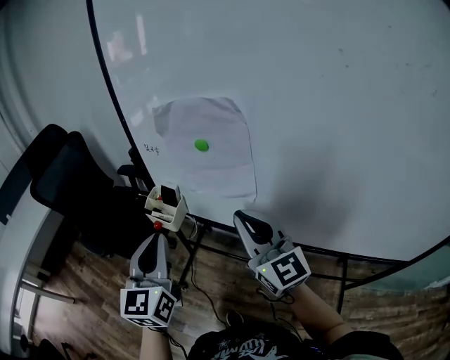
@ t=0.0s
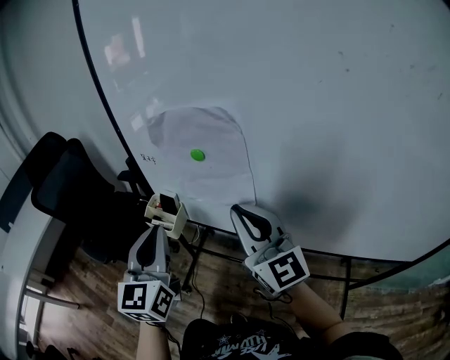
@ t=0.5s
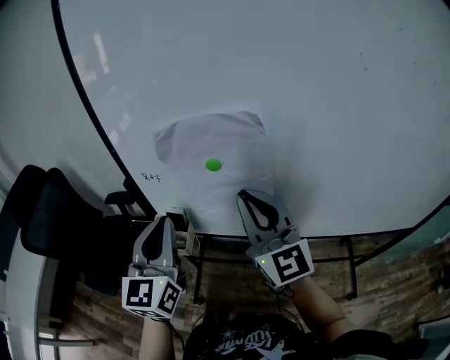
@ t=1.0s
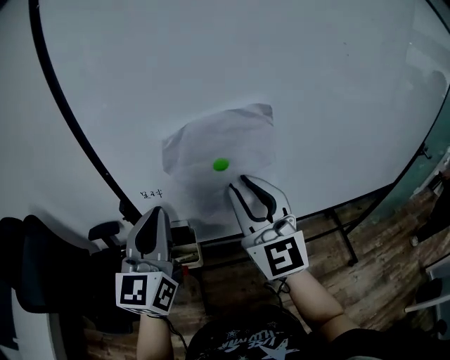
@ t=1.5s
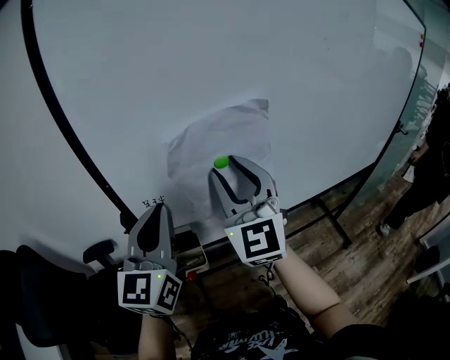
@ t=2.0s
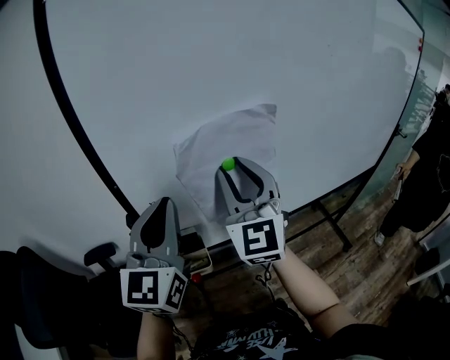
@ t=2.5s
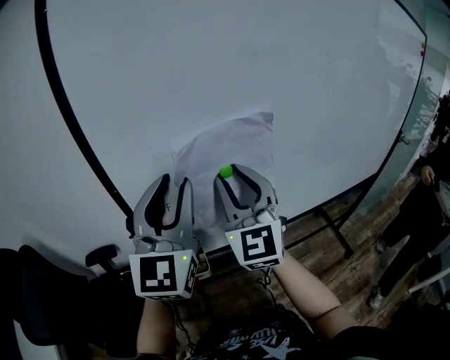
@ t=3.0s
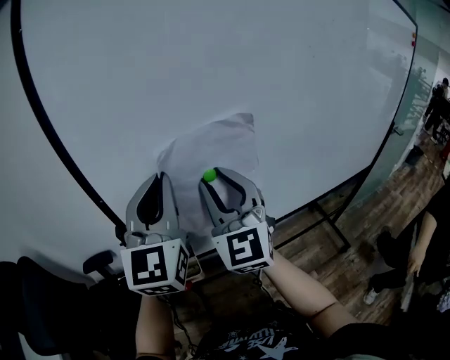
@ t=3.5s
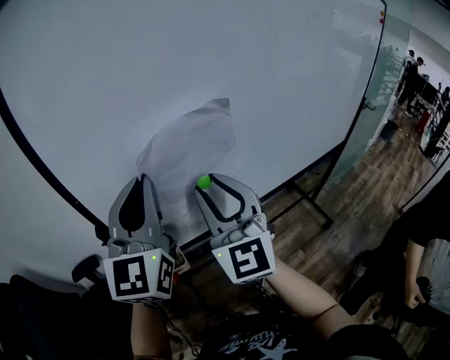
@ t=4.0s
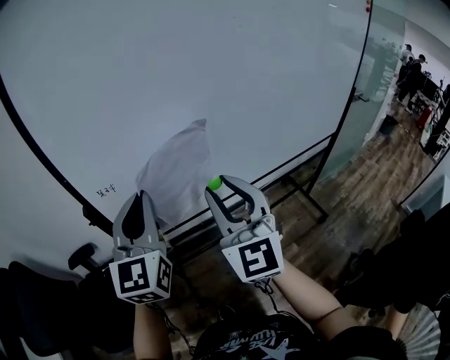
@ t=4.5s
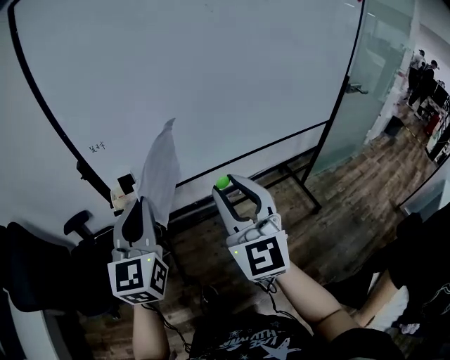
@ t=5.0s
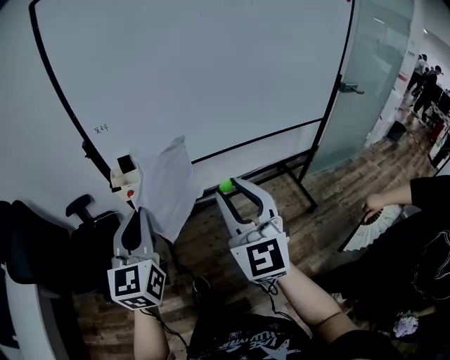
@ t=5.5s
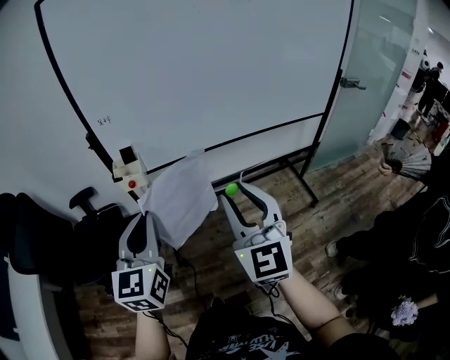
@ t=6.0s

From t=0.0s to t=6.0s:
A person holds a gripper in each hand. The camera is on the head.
From t=0.0s to t=2.0s: The left gripper moves about 20 cm, and swivels some 40 degrees. Meanwhile the right gripper moves approximately 15 cm, rotates roughly 60 degrees, and opens its fingers.
From t=2.0s to t=4.0s: The right gripper changes place by some 5 cm. The left gripper goes approximately 10 cm upward and to the right, and opens and closes again.
From t=4.0s to t=6.0s: The right gripper goes approximately 35 cm backward and to the right, while the left gripper travels backward and downward by approximately 35 cm, and changes its angle by some 20 degrees.

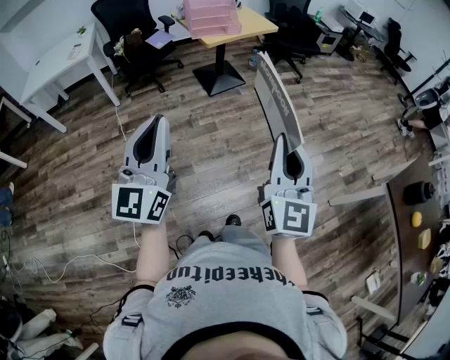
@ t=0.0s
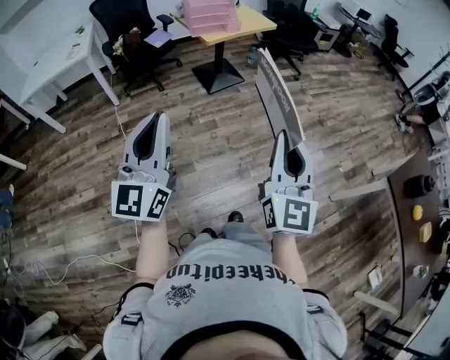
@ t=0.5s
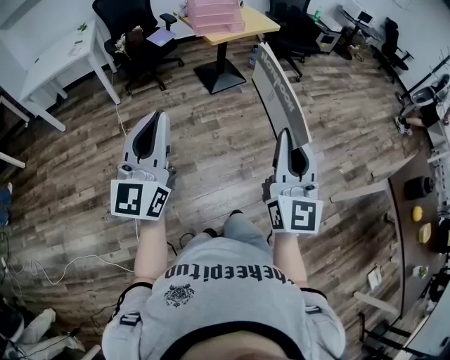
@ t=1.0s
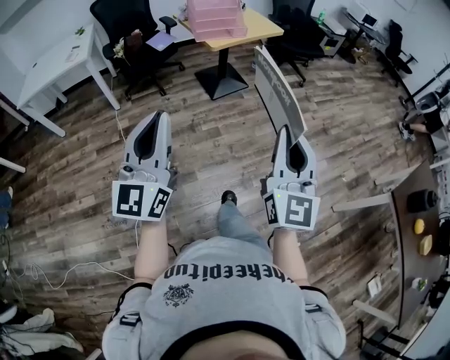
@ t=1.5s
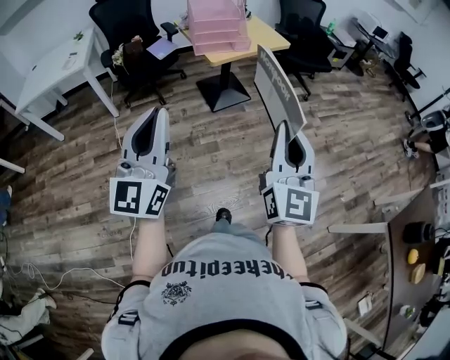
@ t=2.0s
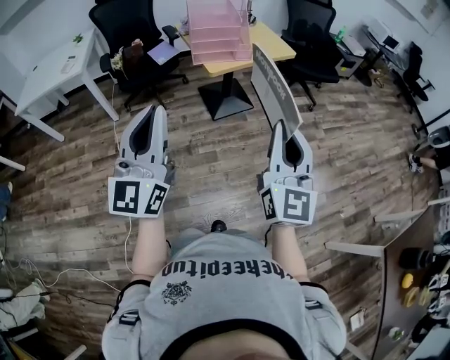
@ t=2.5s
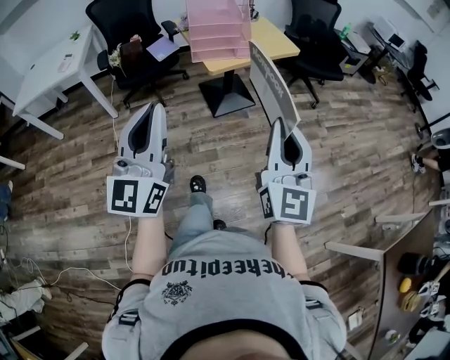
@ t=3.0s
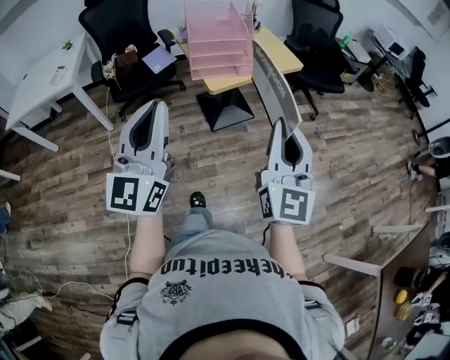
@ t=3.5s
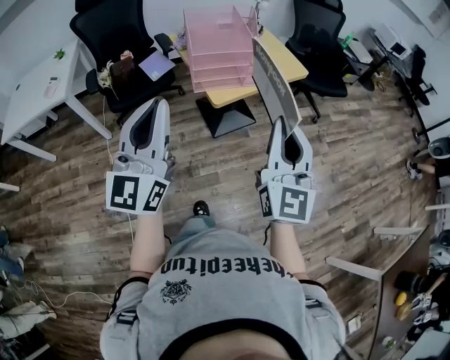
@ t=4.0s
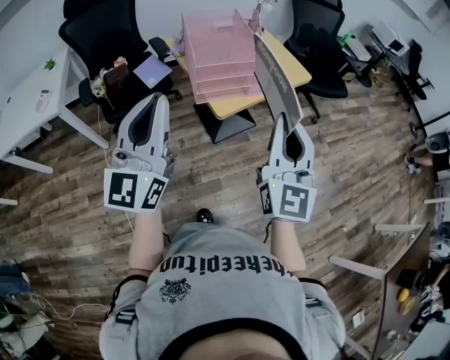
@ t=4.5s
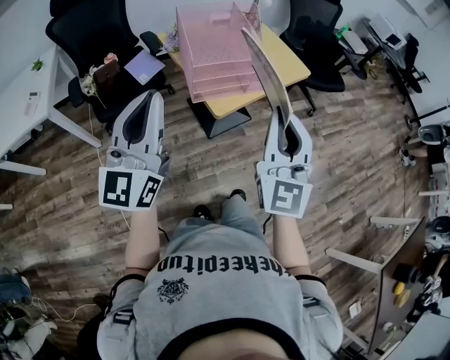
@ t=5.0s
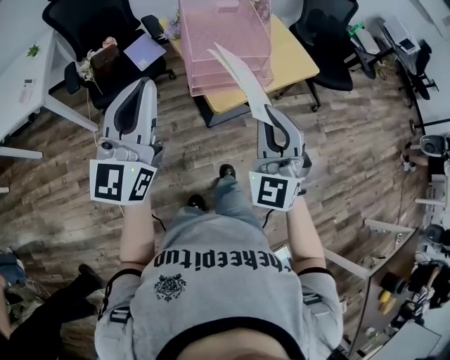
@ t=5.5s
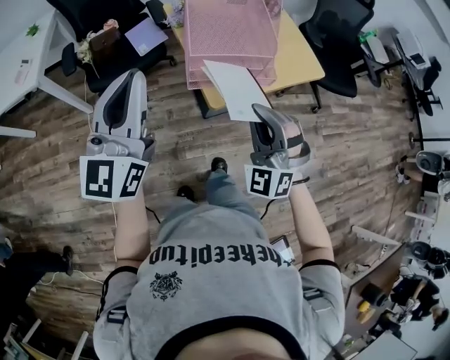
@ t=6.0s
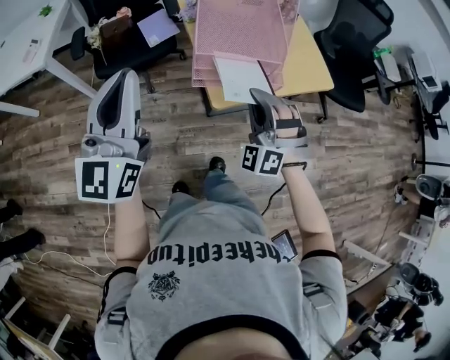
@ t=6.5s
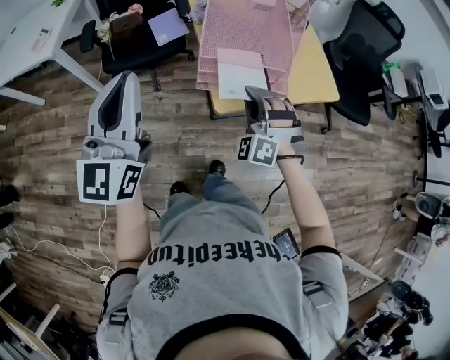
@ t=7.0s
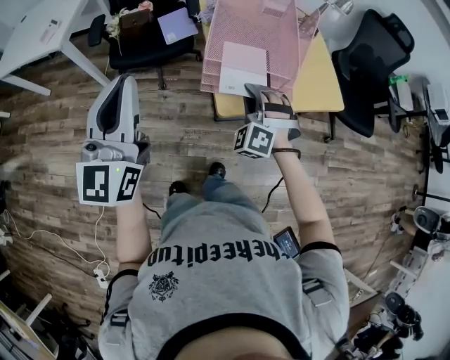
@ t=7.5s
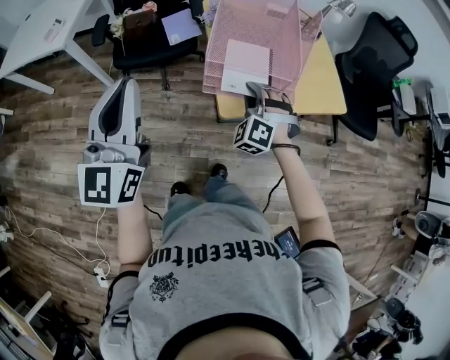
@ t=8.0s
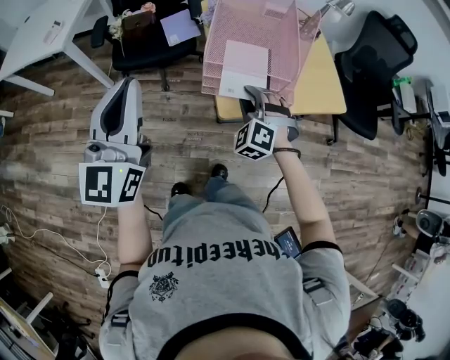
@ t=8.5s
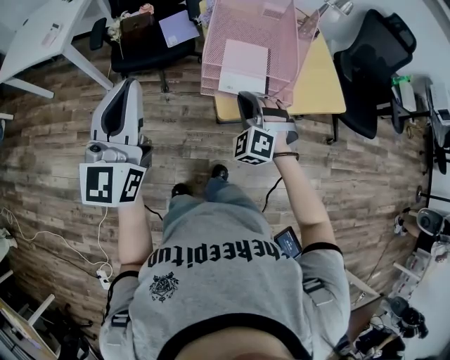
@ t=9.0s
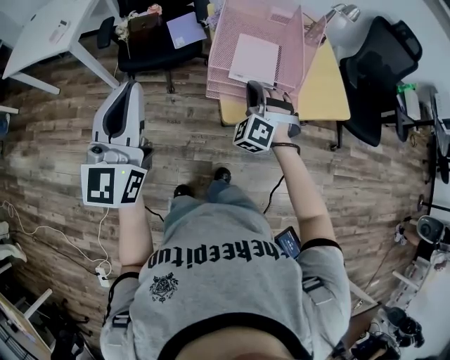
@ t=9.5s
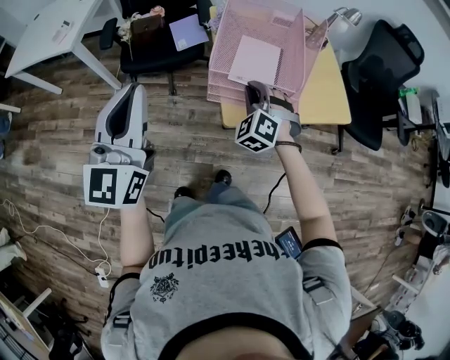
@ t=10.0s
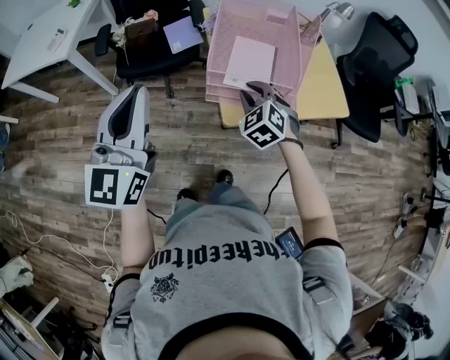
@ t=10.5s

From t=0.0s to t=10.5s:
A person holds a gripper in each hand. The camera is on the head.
From t=0.0s to t=2.0s: The grippers both shift forward by about 20 cm.
From t=2.0s to t=4.0s: The grippers both shift forward by about 35 cm.
From t=4.0s to t=6.5s: The left gripper goes some 20 cm forward; the right gripper moves forward and downward, roughly 35 cm, and rolls counterclockwise, seen from behind, by some 70 degrees.
From t=6.5s to t=8.5s: The right gripper shifts roughly 10 cm downward and forward, rotates approximately 20 degrees, and opens.
From t=8.5s to t=10.5s: The right gripper rotates some 20 degrees.

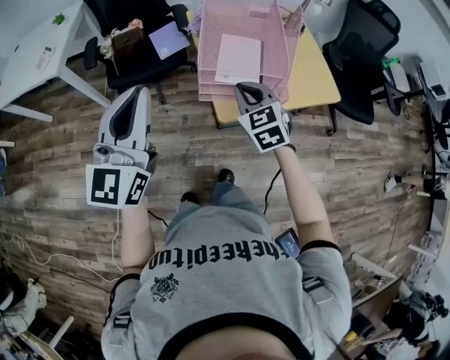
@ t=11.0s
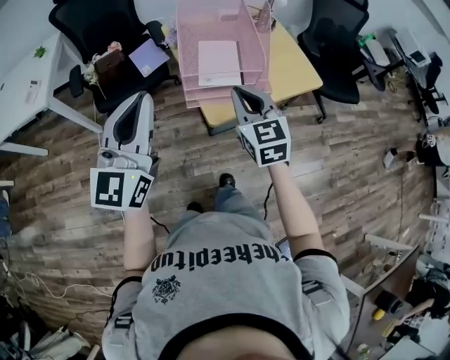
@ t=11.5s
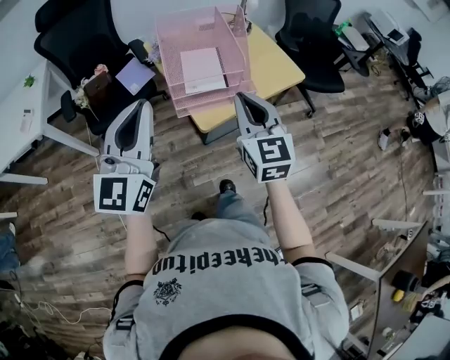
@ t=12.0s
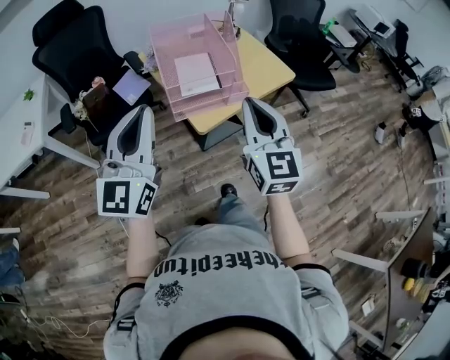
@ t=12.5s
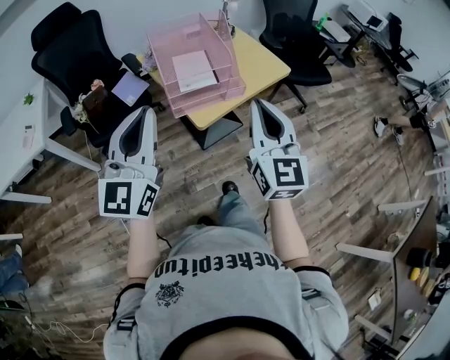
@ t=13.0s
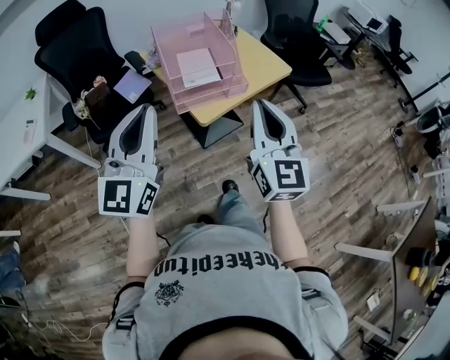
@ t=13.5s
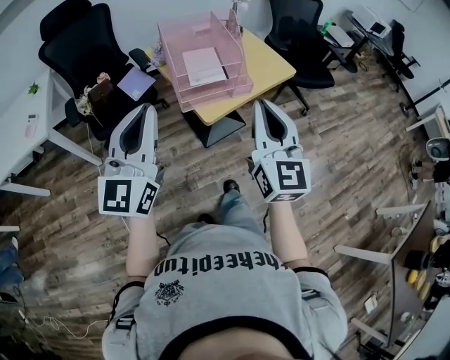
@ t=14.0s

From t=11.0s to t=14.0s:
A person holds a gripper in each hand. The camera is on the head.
From t=11.0s to t=12.5s: The right gripper heads upward, backward and to the right, covering approximately 25 cm, and points its fingers about 30 degrees further upward. The left gripper shifts by roughly 5 cm.
From t=12.5s to t=14.0s: The two grippers go about 5 cm backward.

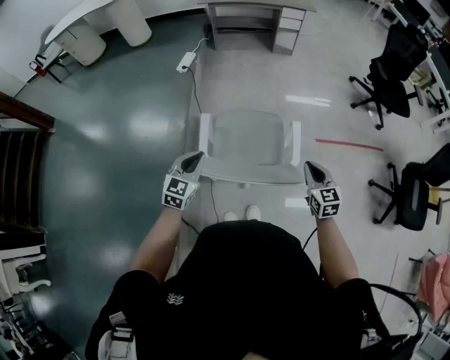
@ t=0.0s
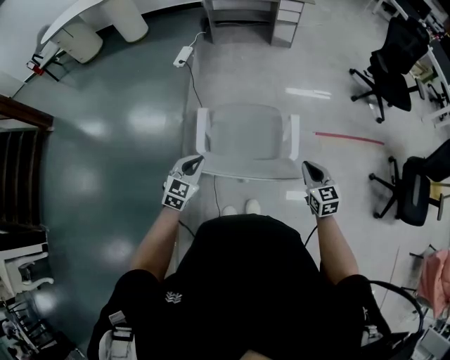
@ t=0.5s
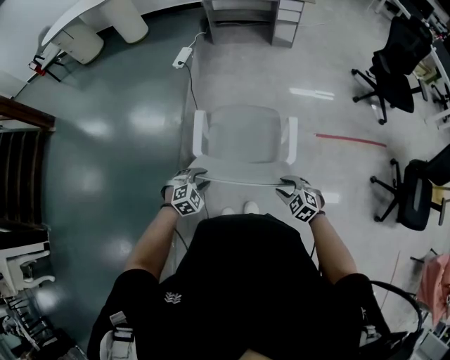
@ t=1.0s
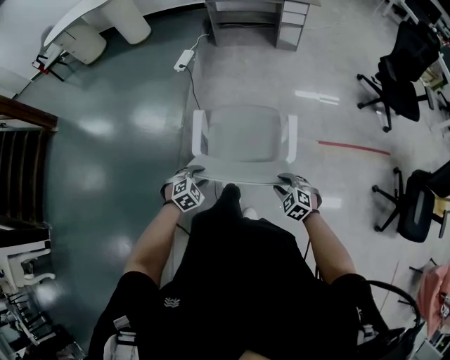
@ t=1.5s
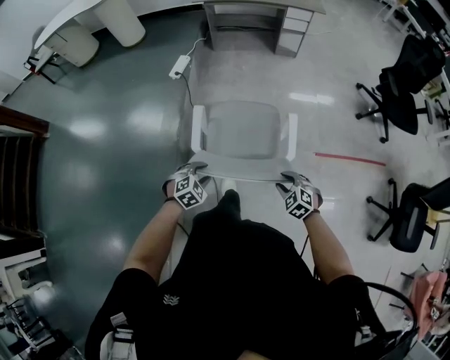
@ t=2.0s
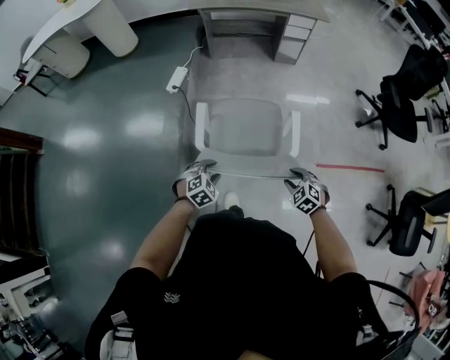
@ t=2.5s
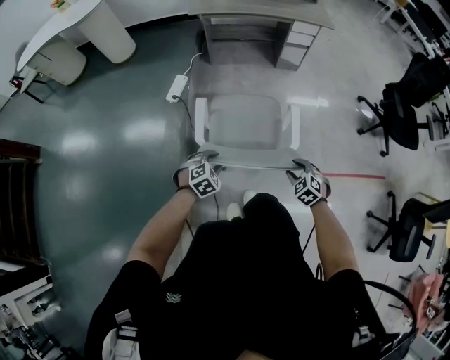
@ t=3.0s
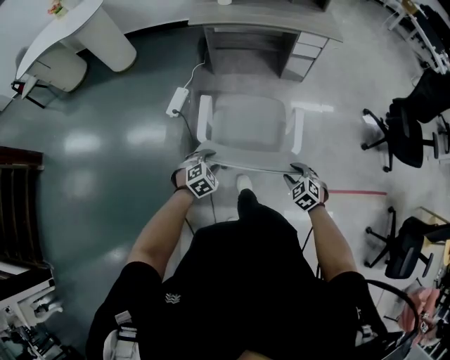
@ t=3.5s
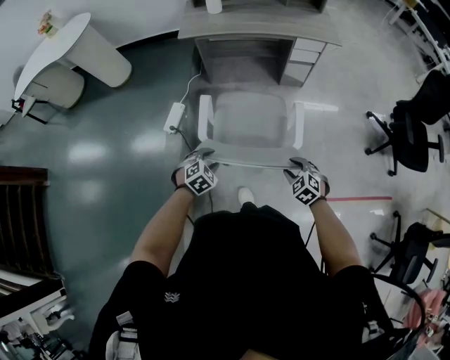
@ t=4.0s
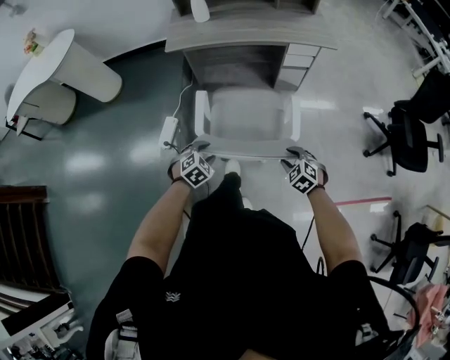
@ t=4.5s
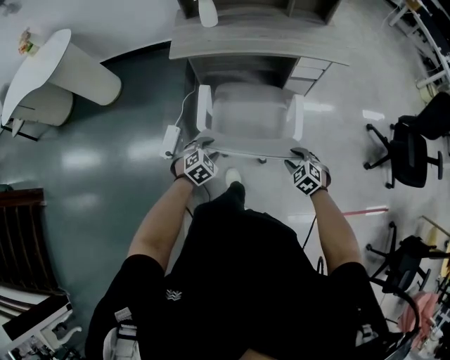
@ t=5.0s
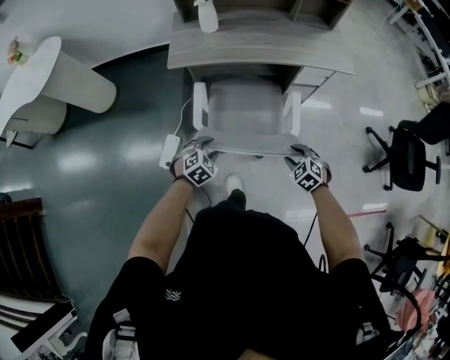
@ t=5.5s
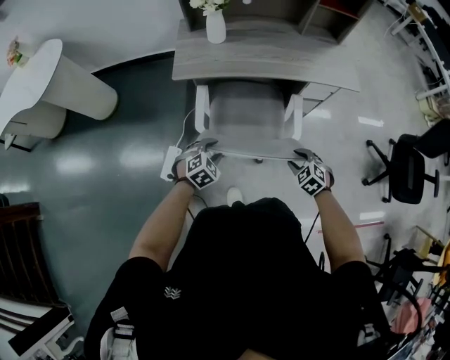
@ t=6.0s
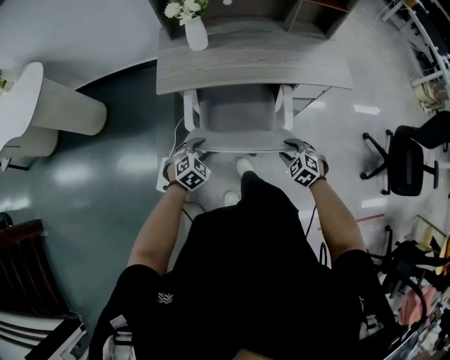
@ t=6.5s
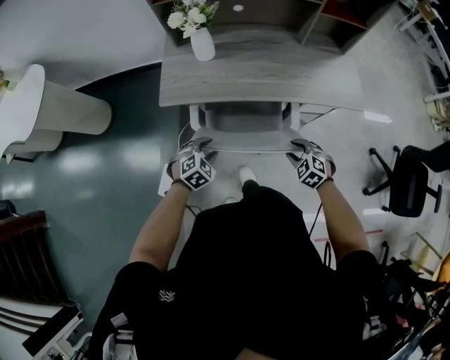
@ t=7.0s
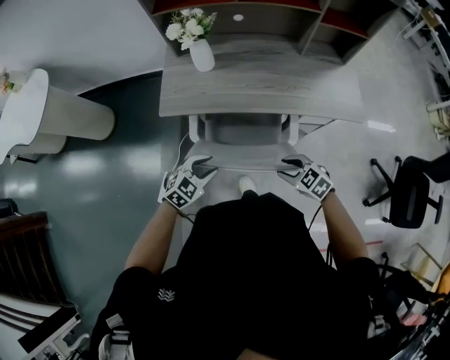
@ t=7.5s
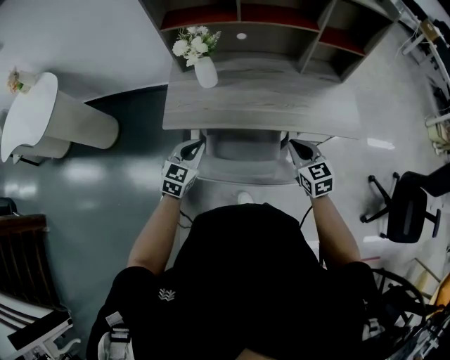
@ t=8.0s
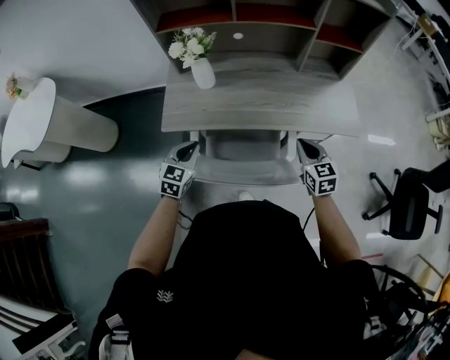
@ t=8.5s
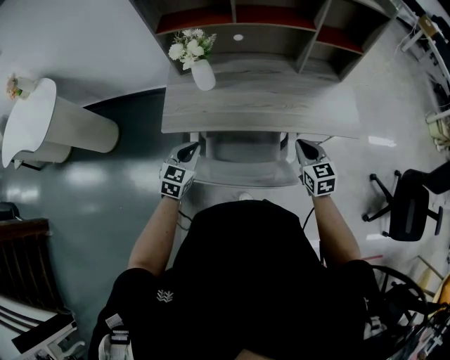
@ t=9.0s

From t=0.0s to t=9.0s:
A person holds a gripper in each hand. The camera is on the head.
From t=0.0s to t=2.0s: The left gripper is displaced downward, forward and to the right by approximately 20 cm, tips its fingers downward by about 40 degrees, and opens up. Meanwhile the right gripper goes some 20 cm forward and downward, rotates roughly 50 degrees, and opens its fingers.
From t=2.0s to t=4.5s: Both grippers are carried forward, approximately 70 cm.
From t=4.5s to t=7.0s: Both grippers are carried forward, about 50 cm.
From t=7.0s to t=9.0s: The left gripper travels upward and forward by roughly 15 cm, turns by some 40 degrees, and closes its fingers. Meanwhile the right gripper goes roughly 20 cm upward, forward and to the right, tilts its fingers roughly 30 degrees upward, and closes its fingers.
